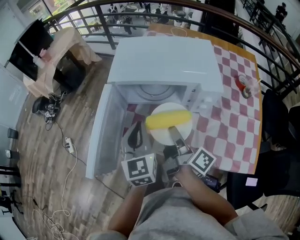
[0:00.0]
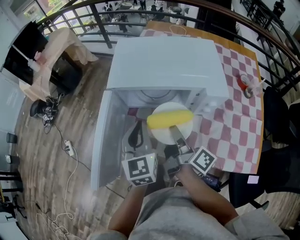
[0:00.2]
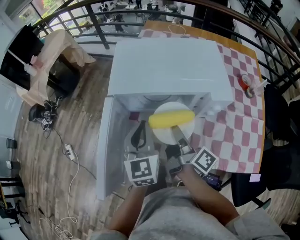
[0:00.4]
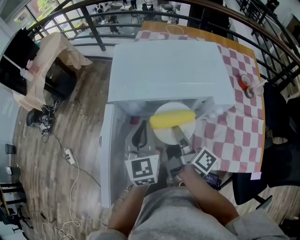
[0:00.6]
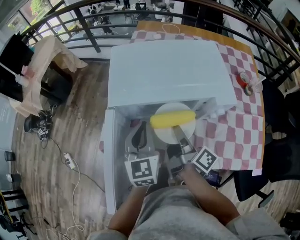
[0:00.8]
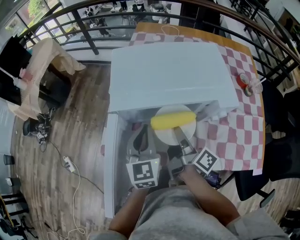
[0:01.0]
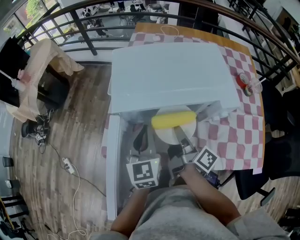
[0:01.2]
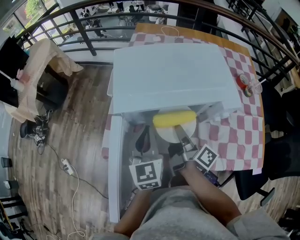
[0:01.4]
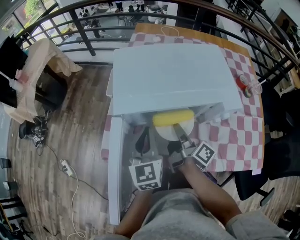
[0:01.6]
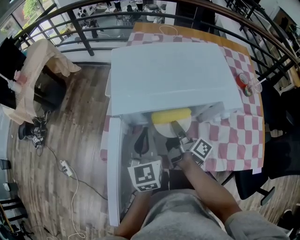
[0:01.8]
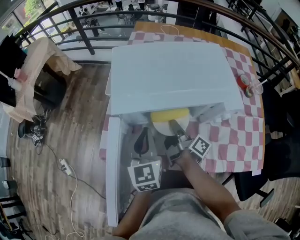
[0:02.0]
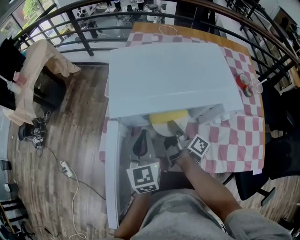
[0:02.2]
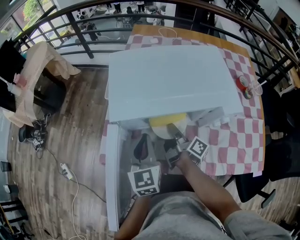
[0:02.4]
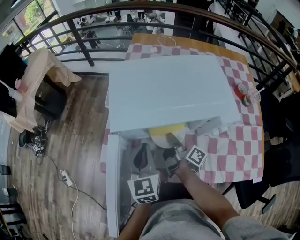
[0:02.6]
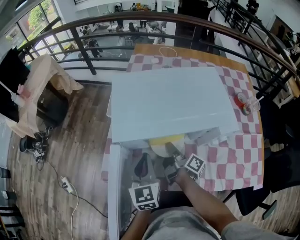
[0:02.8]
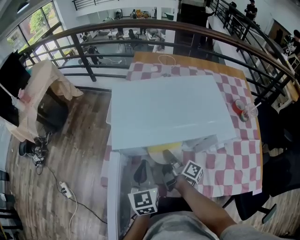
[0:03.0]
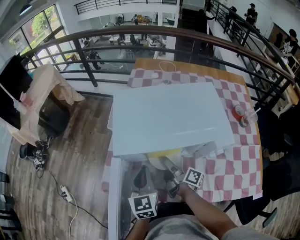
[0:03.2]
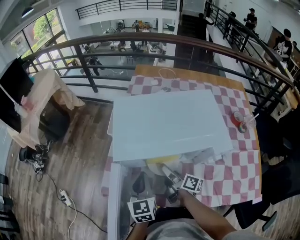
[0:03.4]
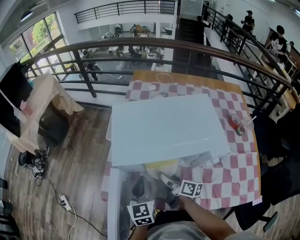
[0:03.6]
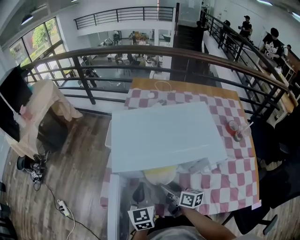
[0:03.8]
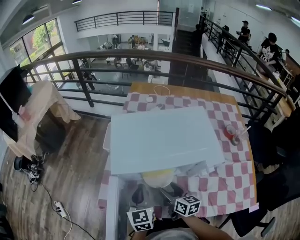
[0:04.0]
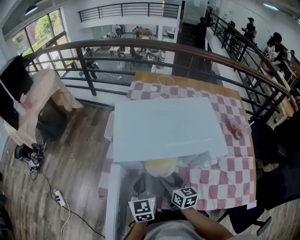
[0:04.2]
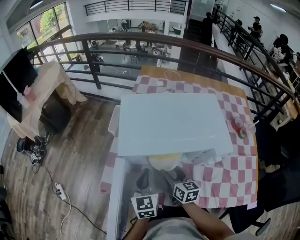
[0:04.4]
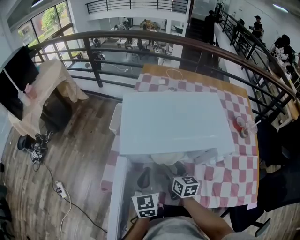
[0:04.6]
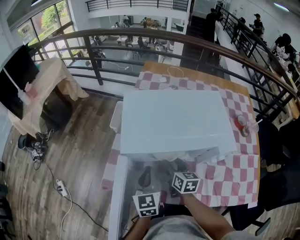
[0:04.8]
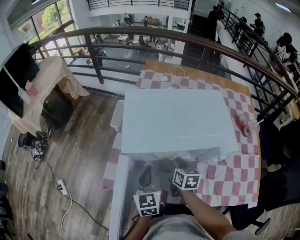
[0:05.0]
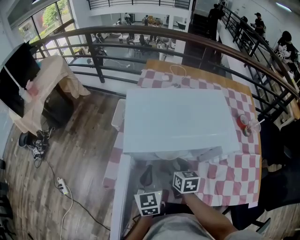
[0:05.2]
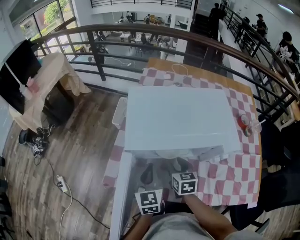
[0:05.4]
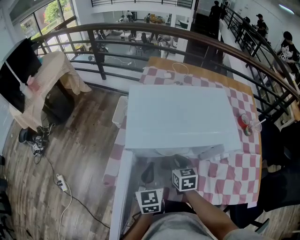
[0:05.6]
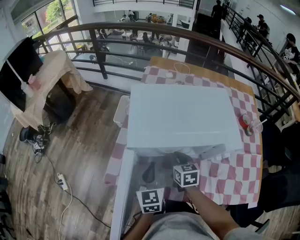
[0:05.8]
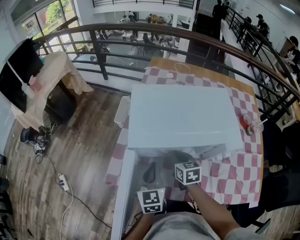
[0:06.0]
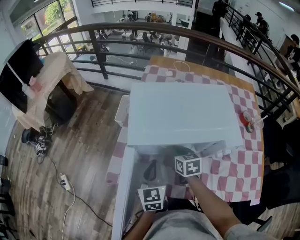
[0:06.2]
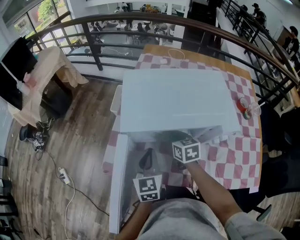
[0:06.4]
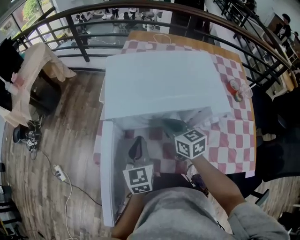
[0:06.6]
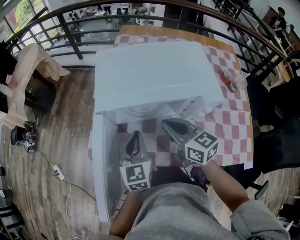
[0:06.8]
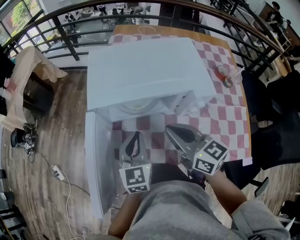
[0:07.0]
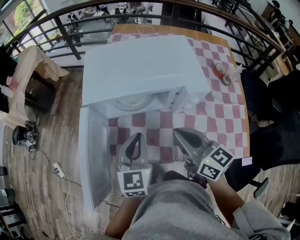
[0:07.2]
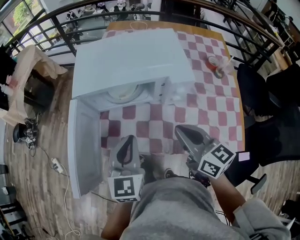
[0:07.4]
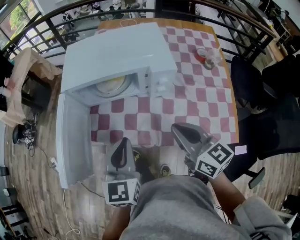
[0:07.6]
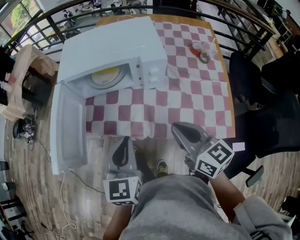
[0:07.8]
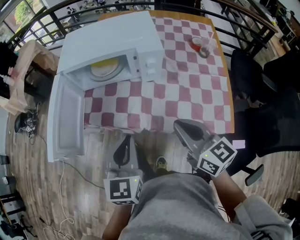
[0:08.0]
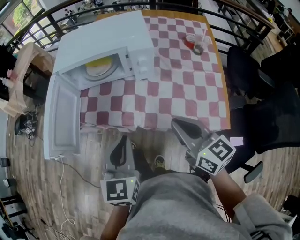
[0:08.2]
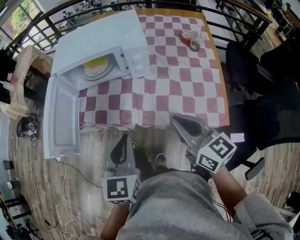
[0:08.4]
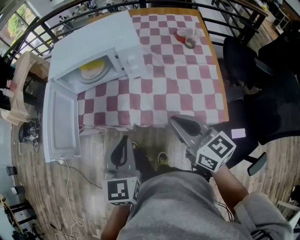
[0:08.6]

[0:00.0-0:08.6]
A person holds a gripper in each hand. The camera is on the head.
0:00.0 to 0:01.4: Both grippers travel together forward, approximately 10 cm.
0:01.4 to 0:02.8: The right gripper shifts roughly 10 cm downward and forward.
0:02.8 to 0:04.4: The right gripper rolls counterclockwise, seen from behind, by roughly 70 degrees, and opens.
0:04.4 to 0:05.8: The right gripper closes its fingers.
0:05.8 to 0:07.2: The left gripper travels backward, to the right and upward by about 15 cm; the right gripper heads upward and backward, covering roughly 25 cm, and swivels about 30 degrees.
0:07.2 to 0:08.6: Both grippers move backward and to the right, roughly 25 cm.

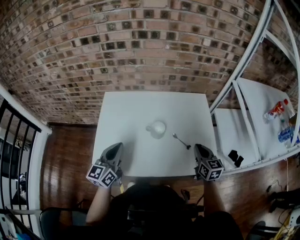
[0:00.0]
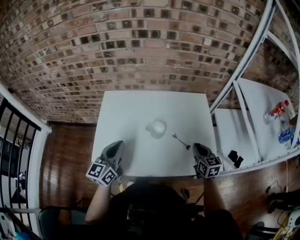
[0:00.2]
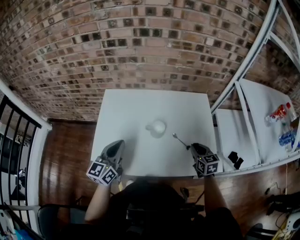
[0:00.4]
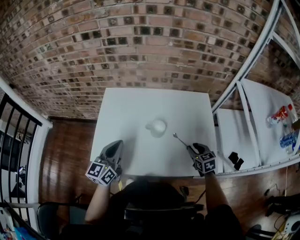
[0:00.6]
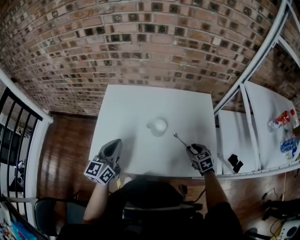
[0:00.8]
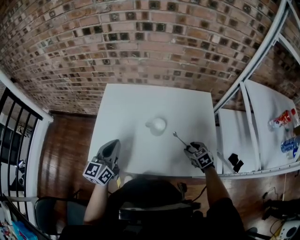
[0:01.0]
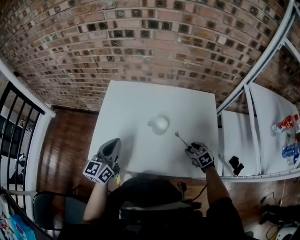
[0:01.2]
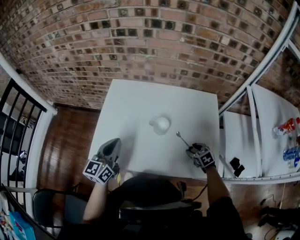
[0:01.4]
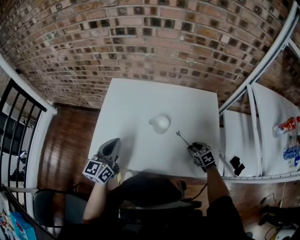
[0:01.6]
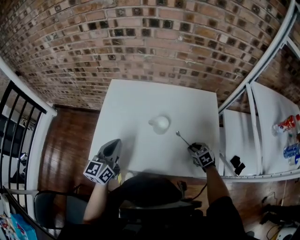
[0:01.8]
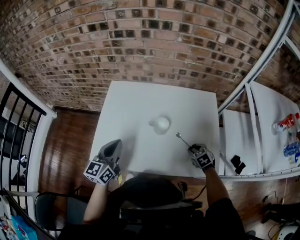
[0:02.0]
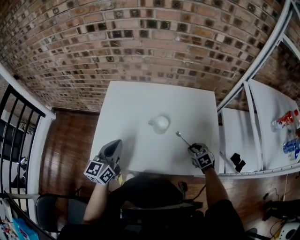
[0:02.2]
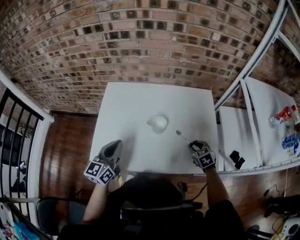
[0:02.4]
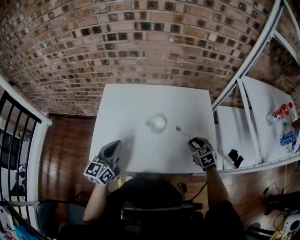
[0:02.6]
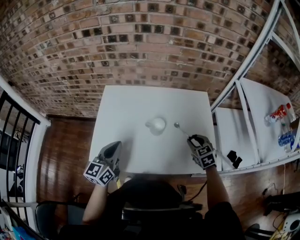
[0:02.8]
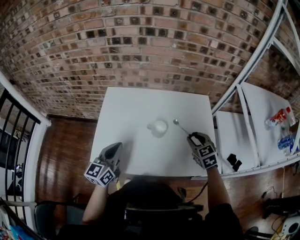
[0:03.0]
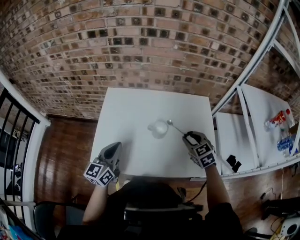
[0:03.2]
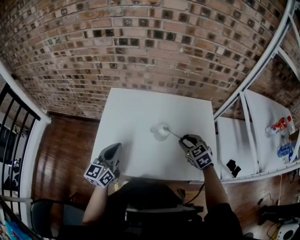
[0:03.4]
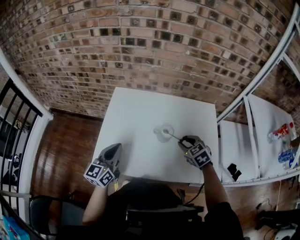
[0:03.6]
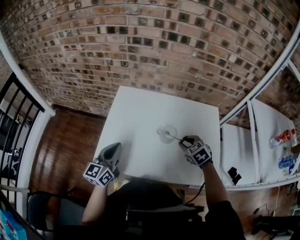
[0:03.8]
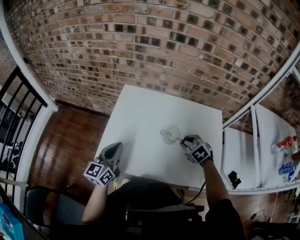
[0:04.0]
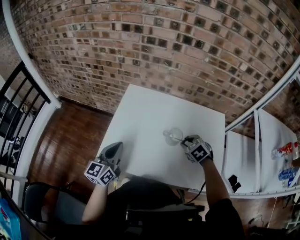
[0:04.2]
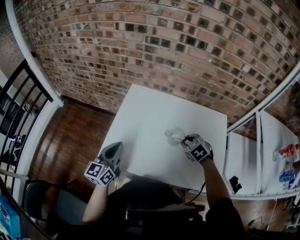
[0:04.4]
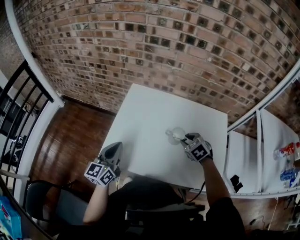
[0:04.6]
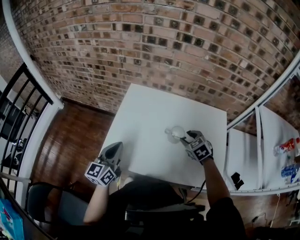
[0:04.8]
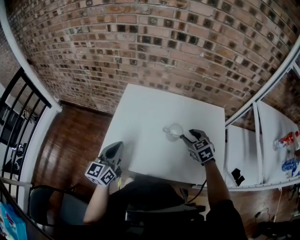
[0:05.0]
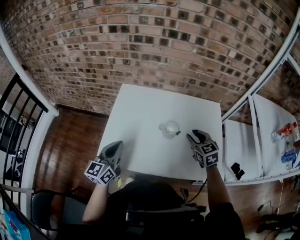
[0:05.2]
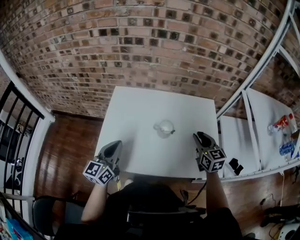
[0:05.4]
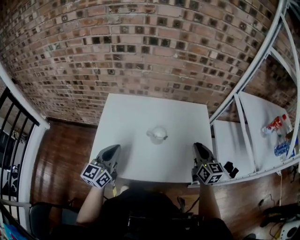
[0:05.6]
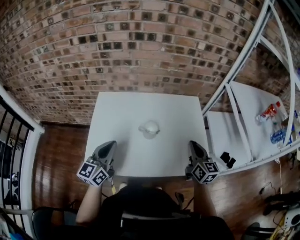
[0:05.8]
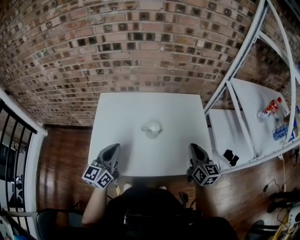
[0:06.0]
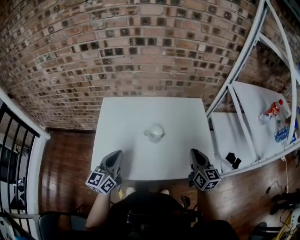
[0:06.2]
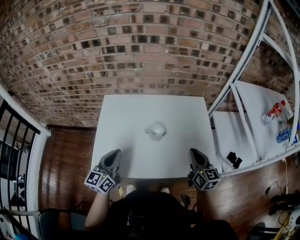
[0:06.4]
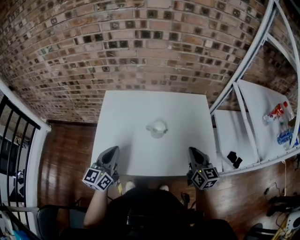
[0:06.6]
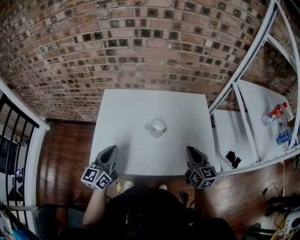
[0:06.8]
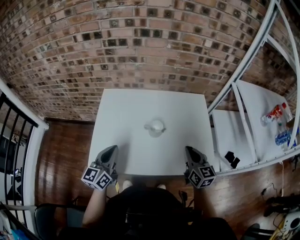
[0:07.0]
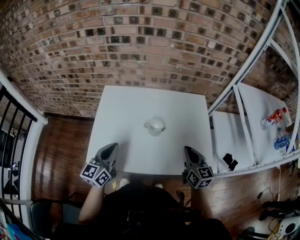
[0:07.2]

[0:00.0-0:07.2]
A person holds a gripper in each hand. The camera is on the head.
0:00.0 to 0:01.4: The right gripper travels downward by approximately 15 cm, angles its fingers downward, by roughly 40 degrees, and opens its fingers.
0:01.4 to 0:02.8: The right gripper moves upward, roughly 15 cm, and swivels roughly 20 degrees.
0:02.8 to 0:04.4: The right gripper travels to the left and forward by approximately 15 cm, and turns by approximately 30 degrees. Meanwhile the left gripper travels to the left by roughly 10 cm.
0:04.4 to 0:05.8: The right gripper moves to the right, upward and backward, about 20 cm, angles its fingers upward, by some 50 degrees, and closes its fingers. Meanwhile the left gripper goes about 10 cm to the right.
0:05.8 to 0:07.2: The right gripper changes place by about 5 cm.

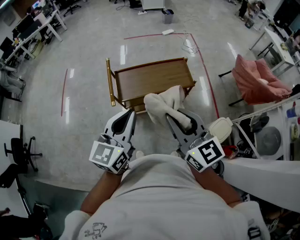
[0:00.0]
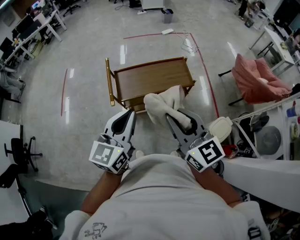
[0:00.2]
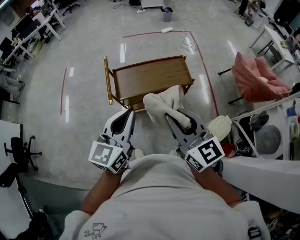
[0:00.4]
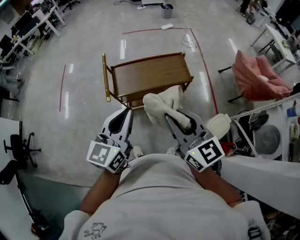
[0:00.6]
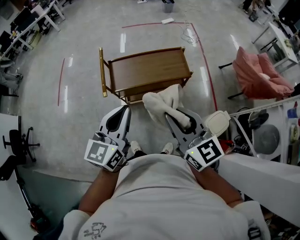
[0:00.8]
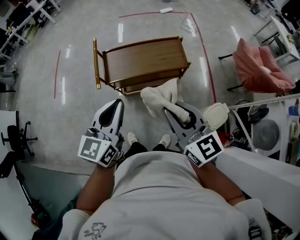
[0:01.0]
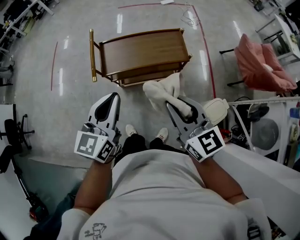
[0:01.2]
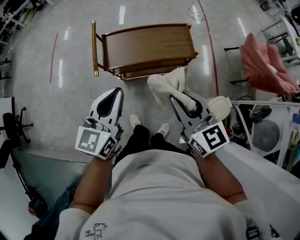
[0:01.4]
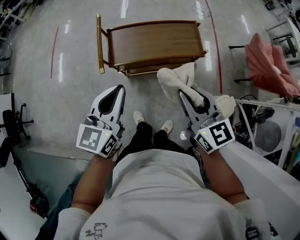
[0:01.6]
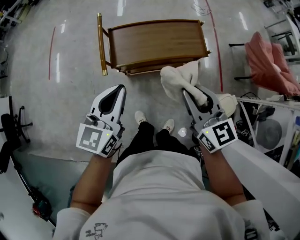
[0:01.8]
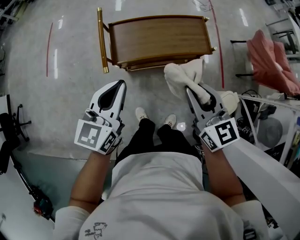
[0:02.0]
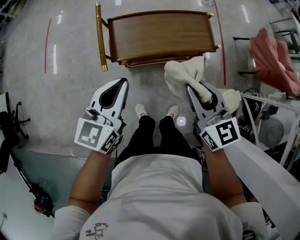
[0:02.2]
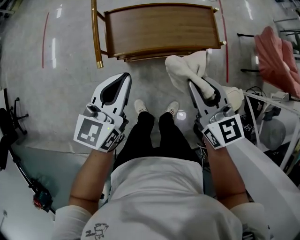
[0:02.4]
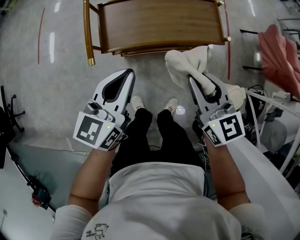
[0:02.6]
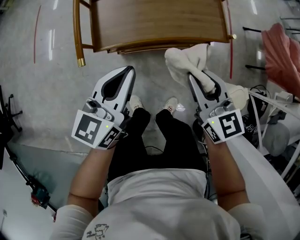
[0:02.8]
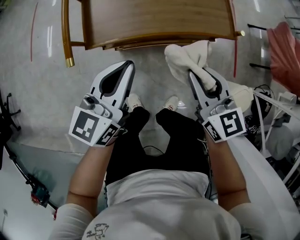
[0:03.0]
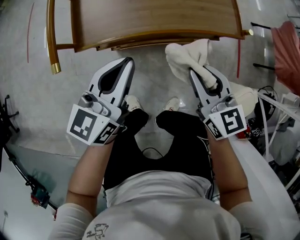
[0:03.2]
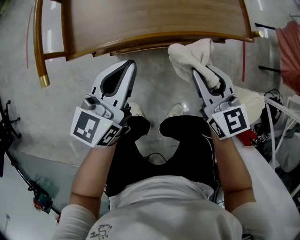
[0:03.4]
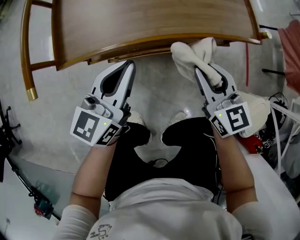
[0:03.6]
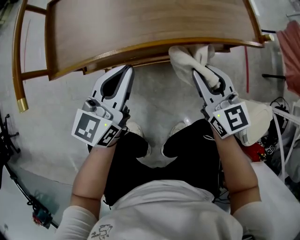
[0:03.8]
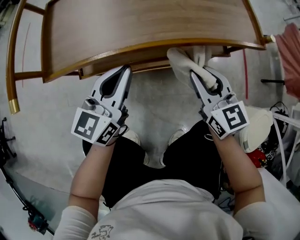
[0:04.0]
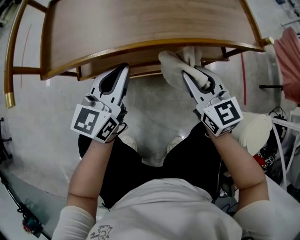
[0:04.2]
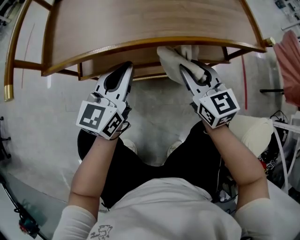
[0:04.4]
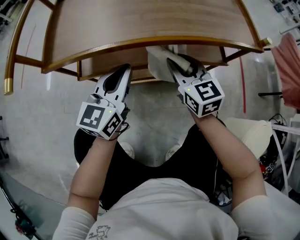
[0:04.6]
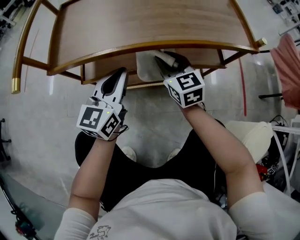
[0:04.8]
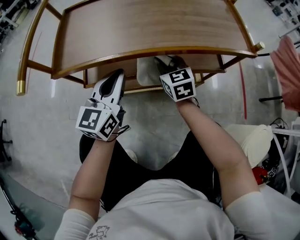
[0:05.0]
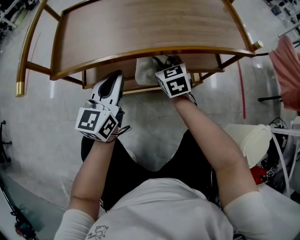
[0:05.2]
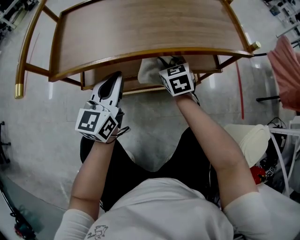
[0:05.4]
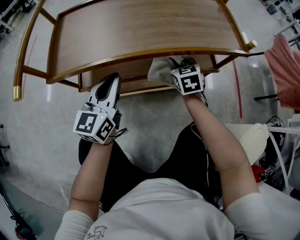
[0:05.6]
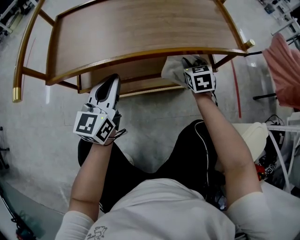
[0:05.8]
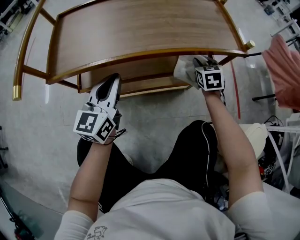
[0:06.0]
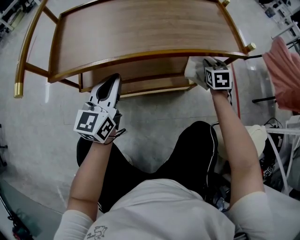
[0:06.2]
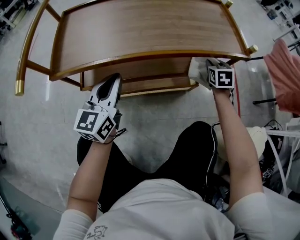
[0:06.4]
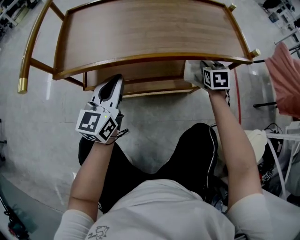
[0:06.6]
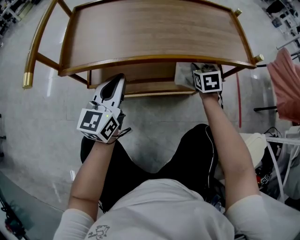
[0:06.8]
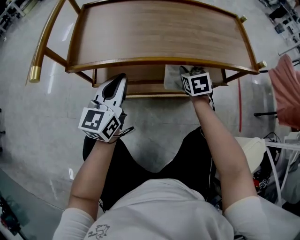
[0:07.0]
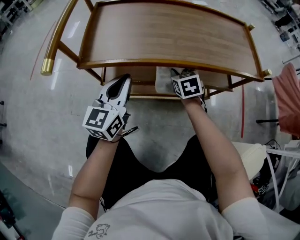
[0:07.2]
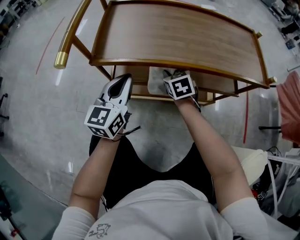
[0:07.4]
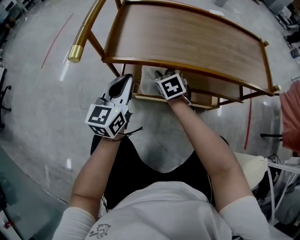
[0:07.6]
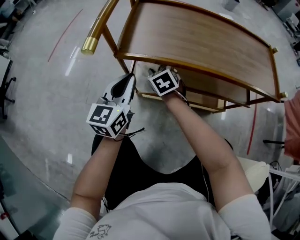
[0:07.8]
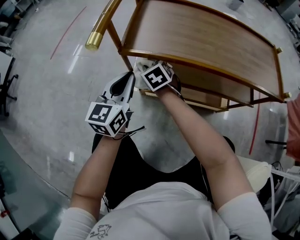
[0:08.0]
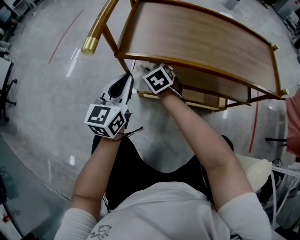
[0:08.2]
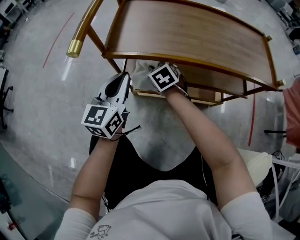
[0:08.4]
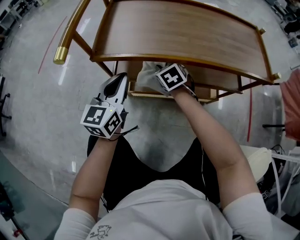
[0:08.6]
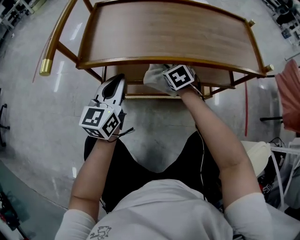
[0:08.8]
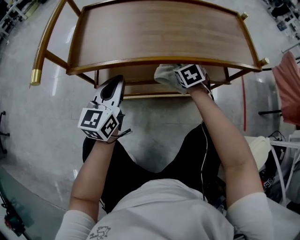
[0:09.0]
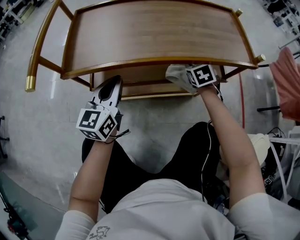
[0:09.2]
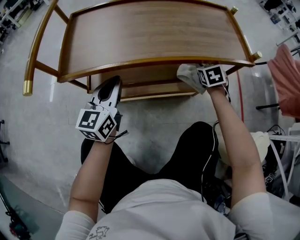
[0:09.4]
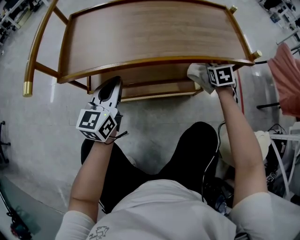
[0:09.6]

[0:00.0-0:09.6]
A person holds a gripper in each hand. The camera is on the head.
0:00.0 to 0:01.6: The right gripper heads downward, forward and to the right, covering roughly 15 cm, while the left gripper moves downward and forward, roughly 15 cm.
0:01.6 to 0:03.2: The left gripper shifts approximately 30 cm downward and forward, while the right gripper moves downward, some 30 cm.
0:03.2 to 0:04.8: The left gripper heads downward, covering some 25 cm. The right gripper is displaced downward and forward by approximately 30 cm.
0:04.8 to 0:06.4: The right gripper heads to the right, covering roughly 25 cm, and turns by roughly 40 degrees.
0:06.4 to 0:08.0: The right gripper moves roughly 50 cm, and turns by about 50 degrees. The left gripper ends up some 15 cm from where it was.
0:08.0 to 0:09.6: The left gripper moves about 15 cm; the right gripper changes place by approximately 50 cm, and changes its angle by approximately 40 degrees.
